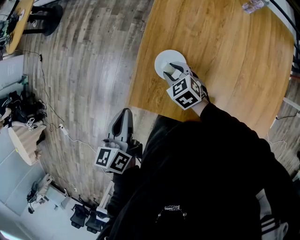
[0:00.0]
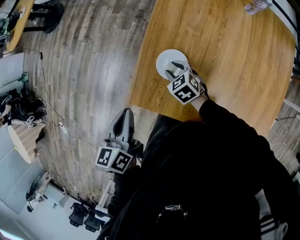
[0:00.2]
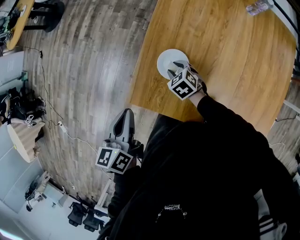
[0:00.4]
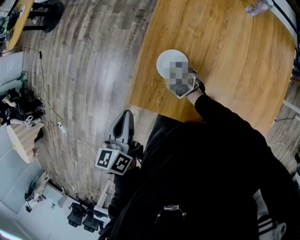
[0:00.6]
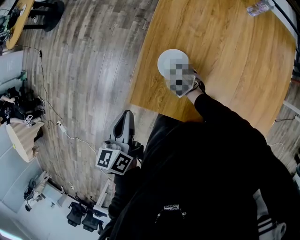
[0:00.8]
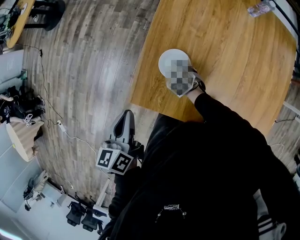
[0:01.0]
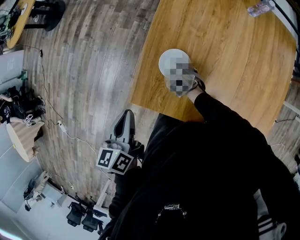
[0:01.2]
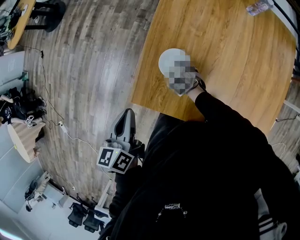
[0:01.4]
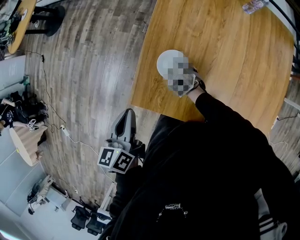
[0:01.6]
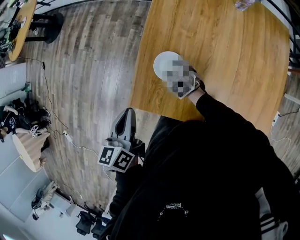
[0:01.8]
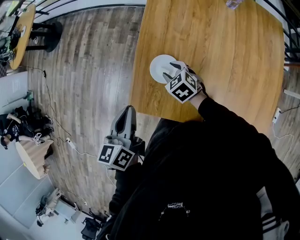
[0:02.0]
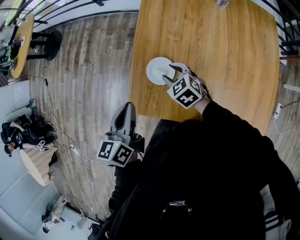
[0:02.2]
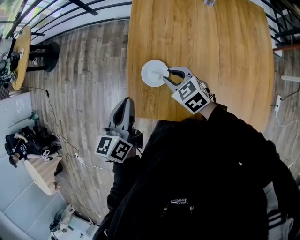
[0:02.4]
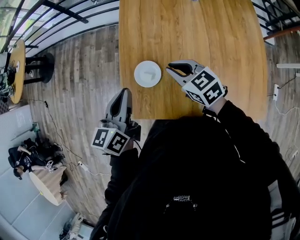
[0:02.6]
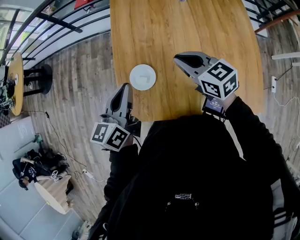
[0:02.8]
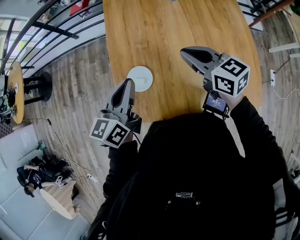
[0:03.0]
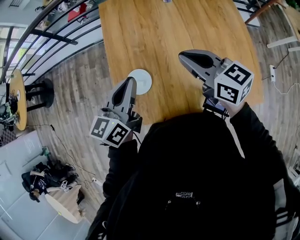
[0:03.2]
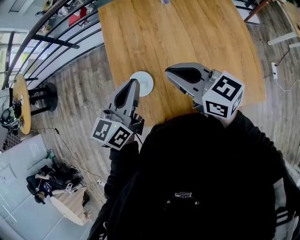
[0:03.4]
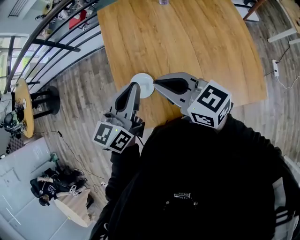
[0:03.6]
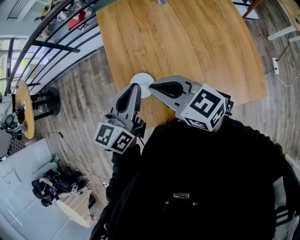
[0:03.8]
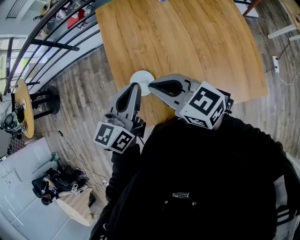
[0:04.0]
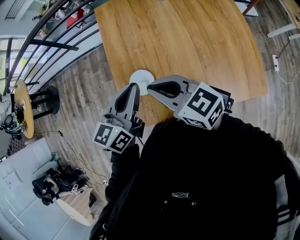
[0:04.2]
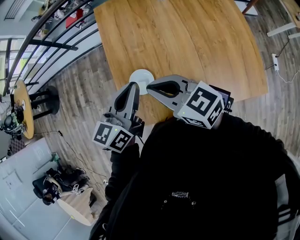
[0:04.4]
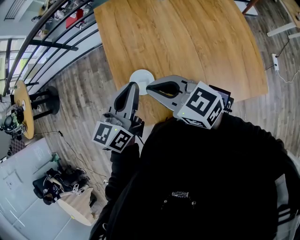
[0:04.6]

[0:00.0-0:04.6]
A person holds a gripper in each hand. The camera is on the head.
0:00.0 to 0:01.6: The right gripper travels downward by roughly 10 cm.
0:01.6 to 0:03.0: The left gripper shifts by about 20 cm, and turns by about 40 degrees, while the right gripper shifts about 35 cm upward, points its fingers some 40 degrees further upward, and closes its fingers.
0:03.0 to 0:04.6: The right gripper goes some 15 cm to the left and backward.

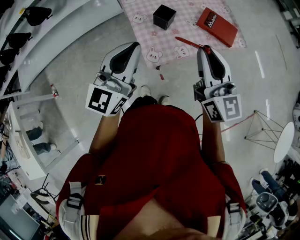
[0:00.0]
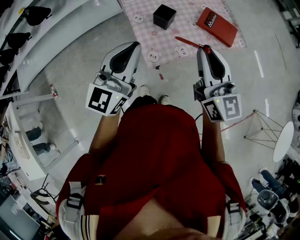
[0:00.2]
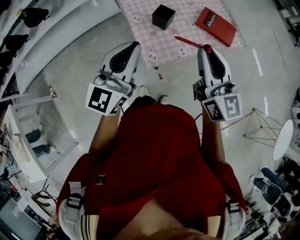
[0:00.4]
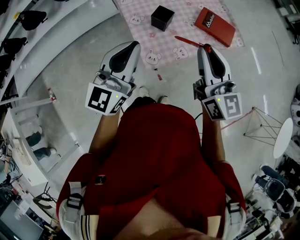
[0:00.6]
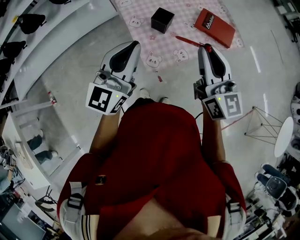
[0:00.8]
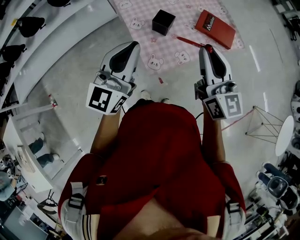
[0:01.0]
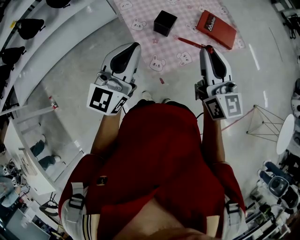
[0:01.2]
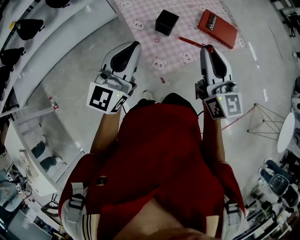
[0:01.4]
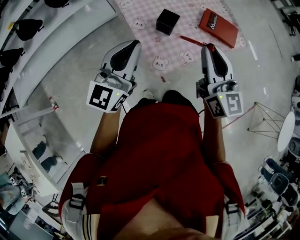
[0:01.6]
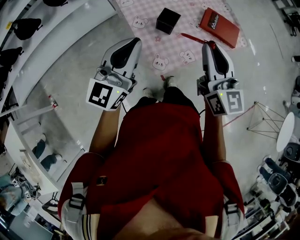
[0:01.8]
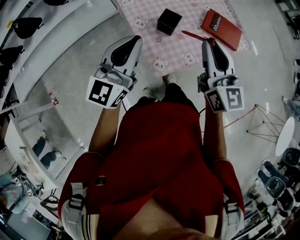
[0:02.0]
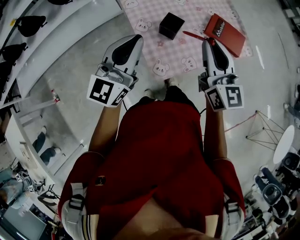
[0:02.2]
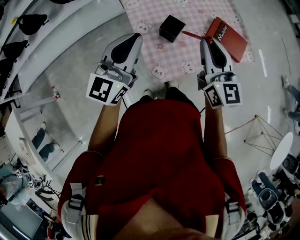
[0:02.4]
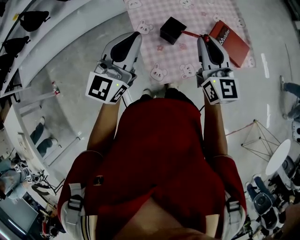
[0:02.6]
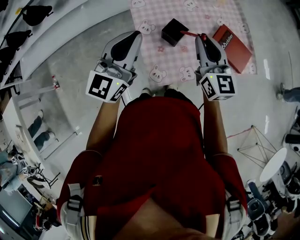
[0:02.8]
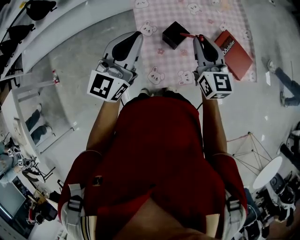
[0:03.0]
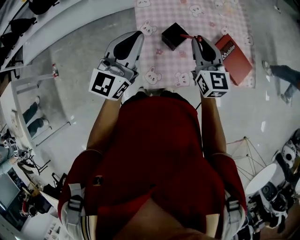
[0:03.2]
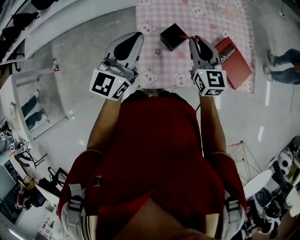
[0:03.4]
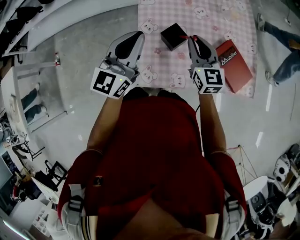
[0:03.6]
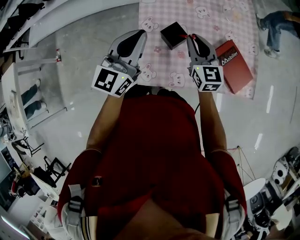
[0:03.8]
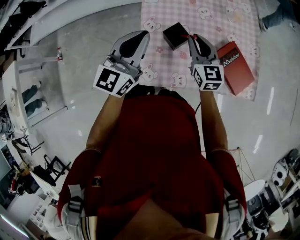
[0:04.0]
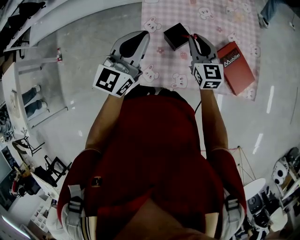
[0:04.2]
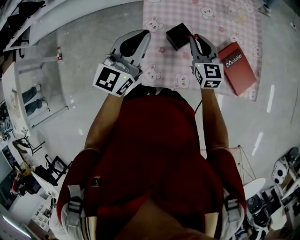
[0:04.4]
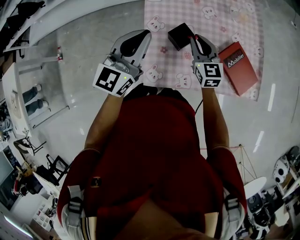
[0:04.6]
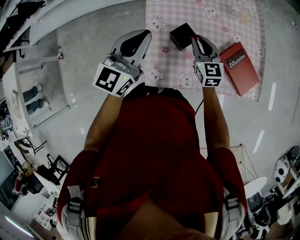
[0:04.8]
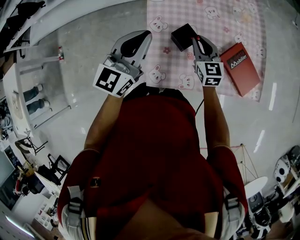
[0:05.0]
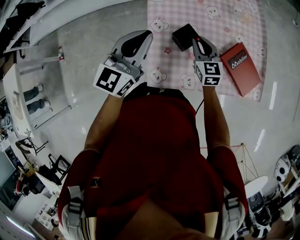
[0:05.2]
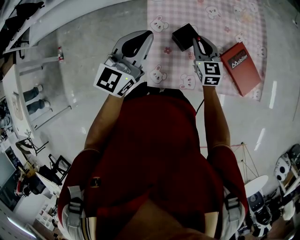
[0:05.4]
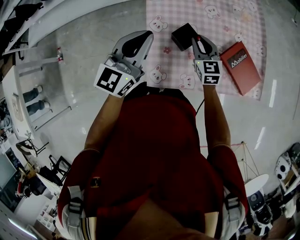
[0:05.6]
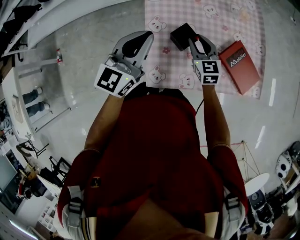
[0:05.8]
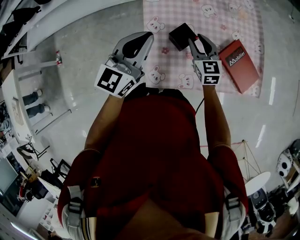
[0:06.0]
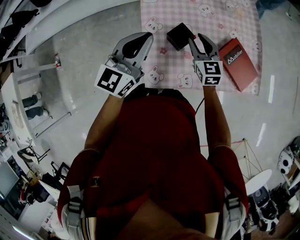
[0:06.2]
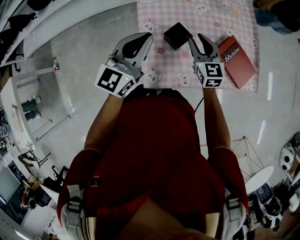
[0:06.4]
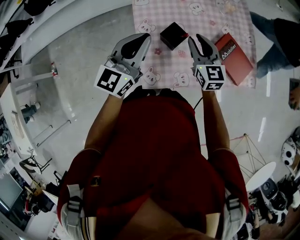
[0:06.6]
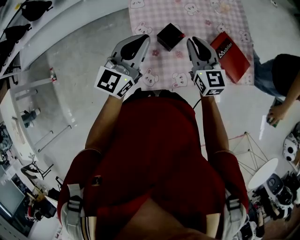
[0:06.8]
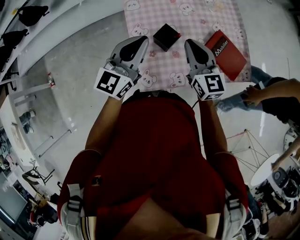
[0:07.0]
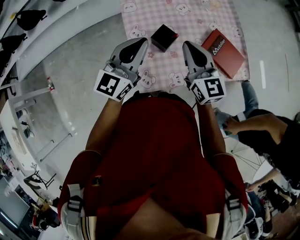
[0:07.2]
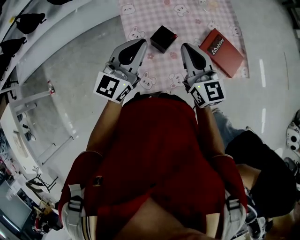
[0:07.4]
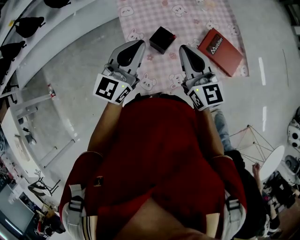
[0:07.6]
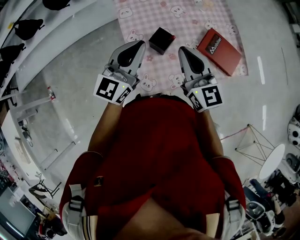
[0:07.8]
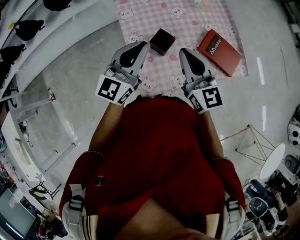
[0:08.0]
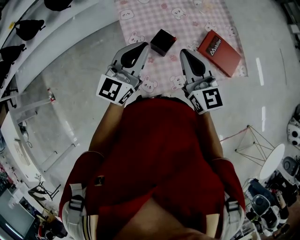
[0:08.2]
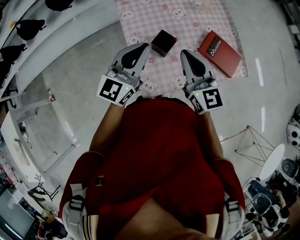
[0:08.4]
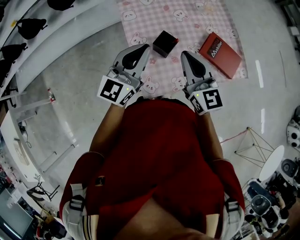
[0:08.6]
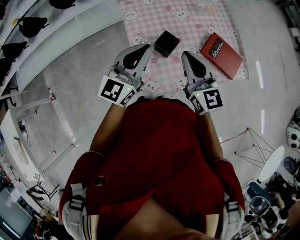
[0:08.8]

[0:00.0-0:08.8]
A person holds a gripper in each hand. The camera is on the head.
0:00.0 to 0:01.4: The right gripper moves some 5 cm; the left gripper is displaced forward and to the left by roughly 10 cm.
0:01.4 to 0:03.0: The left gripper heads forward, covering roughly 15 cm; the right gripper travels forward and downward by roughly 20 cm.
0:03.0 to 0:04.4: The left gripper changes place by about 5 cm. The right gripper travels downward and forward by about 10 cm.
0:04.4 to 0:05.8: The right gripper is displaced downward by about 5 cm.
0:05.8 to 0:07.4: The right gripper heads upward and backward, covering approximately 20 cm, turns by approximately 20 degrees, and closes its fingers.
0:07.4 to 0:08.8: The grippers move only a little.

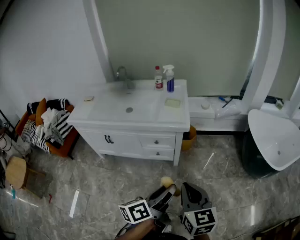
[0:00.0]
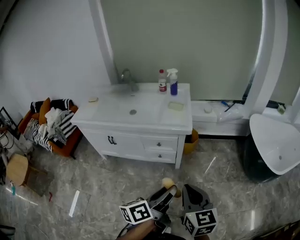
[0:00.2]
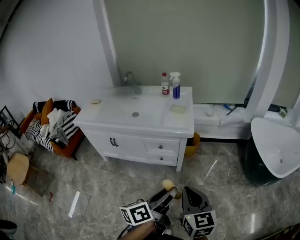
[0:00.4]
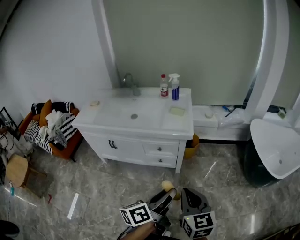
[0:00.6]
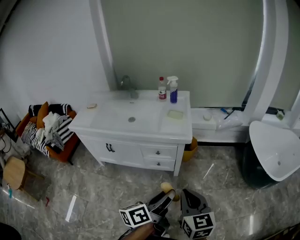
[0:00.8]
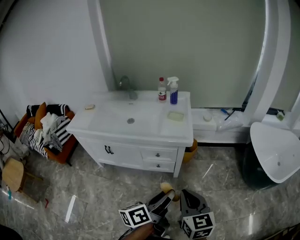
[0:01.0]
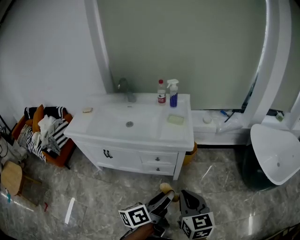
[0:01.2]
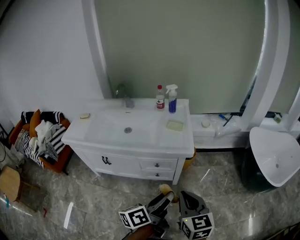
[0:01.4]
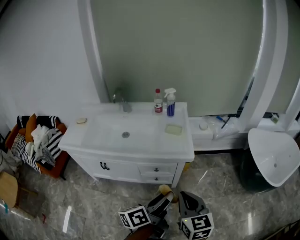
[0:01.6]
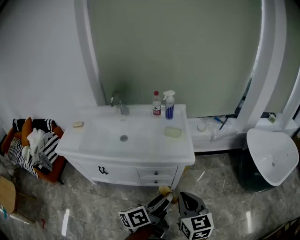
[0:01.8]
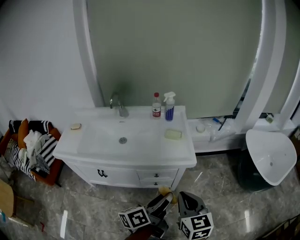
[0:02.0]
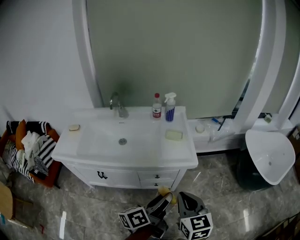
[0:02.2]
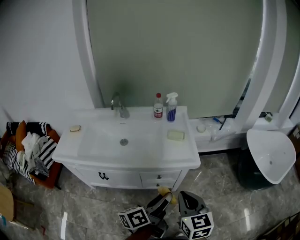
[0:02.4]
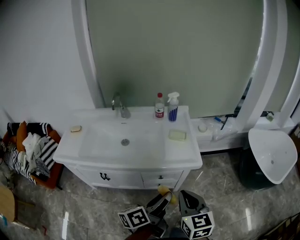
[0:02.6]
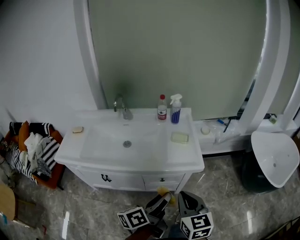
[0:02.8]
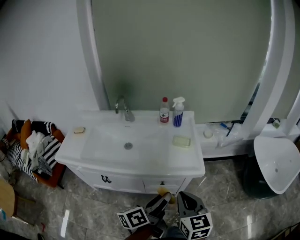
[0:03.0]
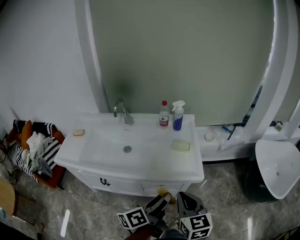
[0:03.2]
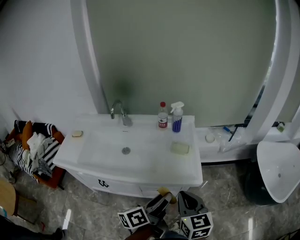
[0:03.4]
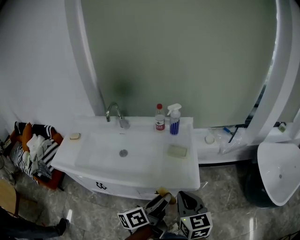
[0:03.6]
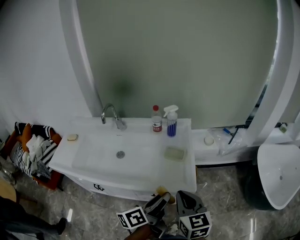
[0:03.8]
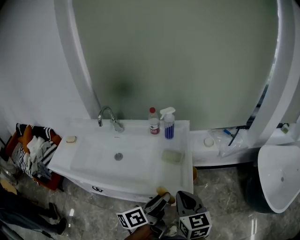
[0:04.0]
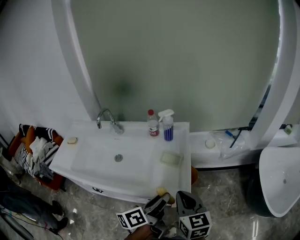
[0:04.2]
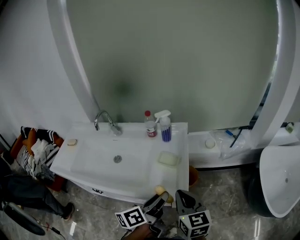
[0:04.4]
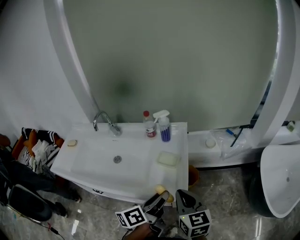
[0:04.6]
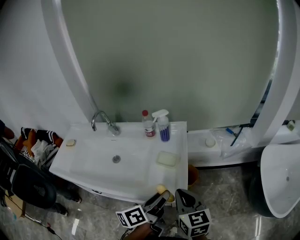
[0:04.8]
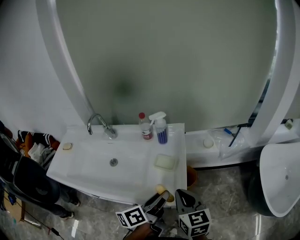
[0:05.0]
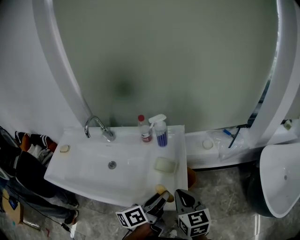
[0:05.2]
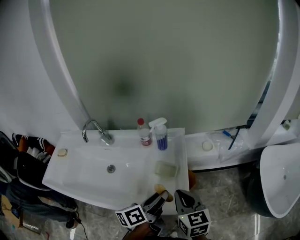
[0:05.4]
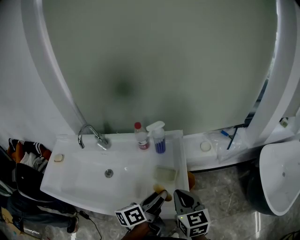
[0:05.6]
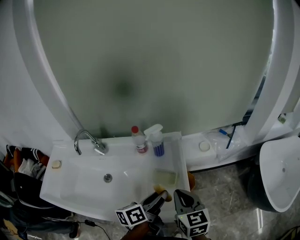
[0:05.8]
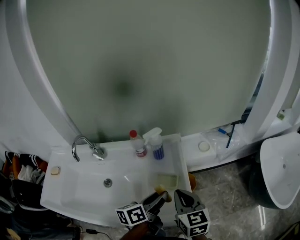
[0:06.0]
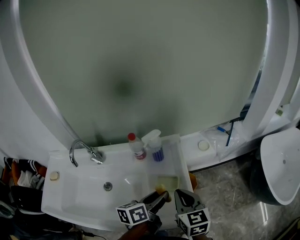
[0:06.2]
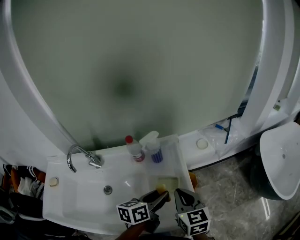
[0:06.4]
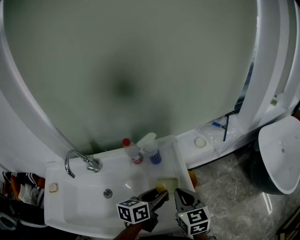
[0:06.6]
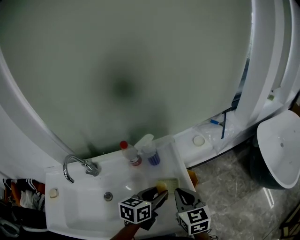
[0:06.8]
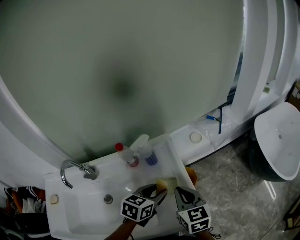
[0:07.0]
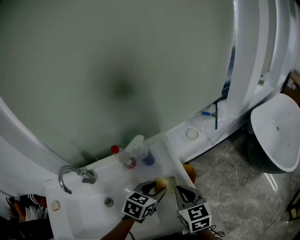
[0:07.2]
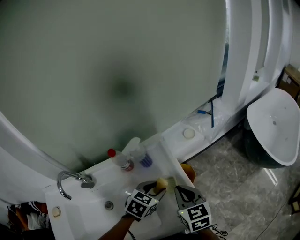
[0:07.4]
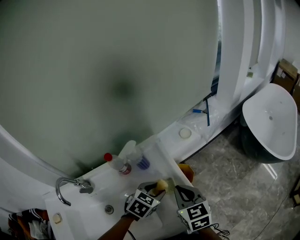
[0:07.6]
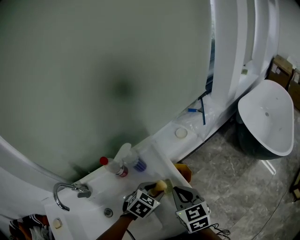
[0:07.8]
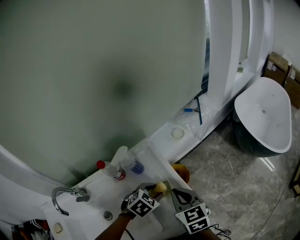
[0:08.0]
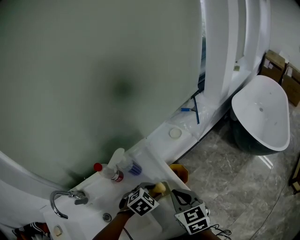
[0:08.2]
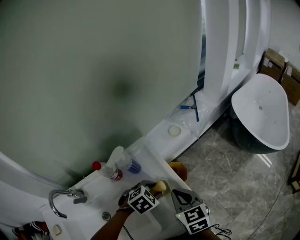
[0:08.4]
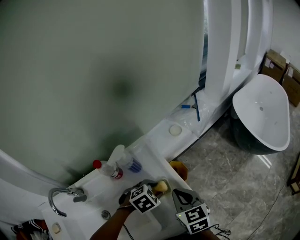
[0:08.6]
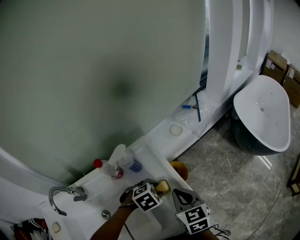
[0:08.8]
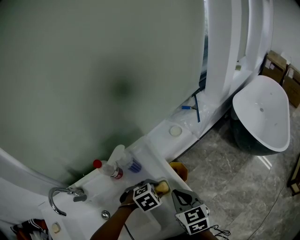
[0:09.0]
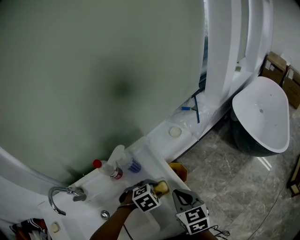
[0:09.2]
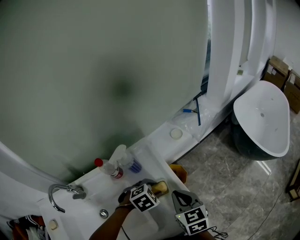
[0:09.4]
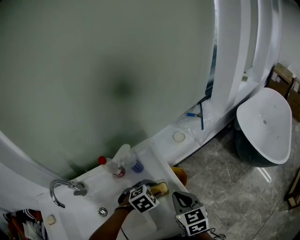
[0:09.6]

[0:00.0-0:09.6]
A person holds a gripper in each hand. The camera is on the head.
0:00.0 to 0:01.6: The two grippers go roughly 15 cm forward and to the left.
0:01.6 to 0:03.2: Both grippers move forward and to the left, roughly 15 cm.
0:03.2 to 0:04.8: The two grippers go approximately 20 cm forward and to the right.
0:04.8 to 0:06.4: The grippers both shift forward by roughly 15 cm. The left gripper turns by some 30 degrees.
0:06.4 to 0:08.0: The left gripper shifts about 10 cm downward and forward, and rotates around the line of its fingers by roughly 70 degrees, clockwise from behind.
0:08.0 to 0:09.6: The grippers stay close to where they were, moving slightly.

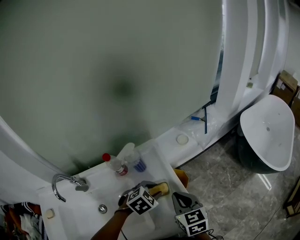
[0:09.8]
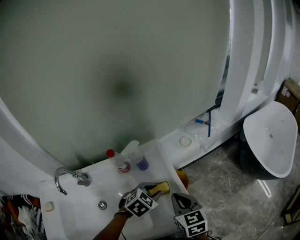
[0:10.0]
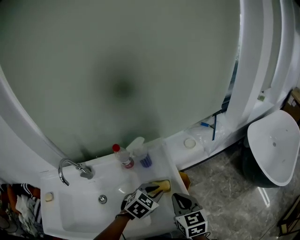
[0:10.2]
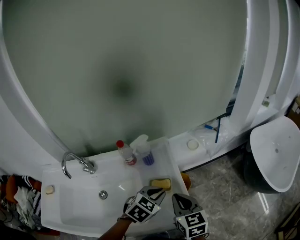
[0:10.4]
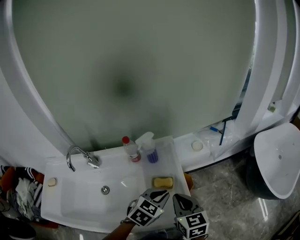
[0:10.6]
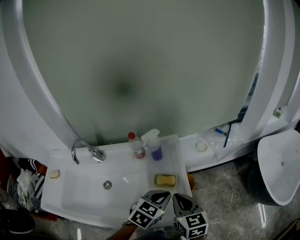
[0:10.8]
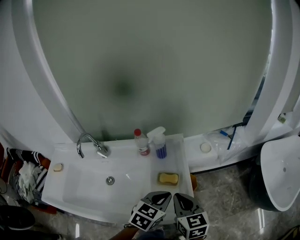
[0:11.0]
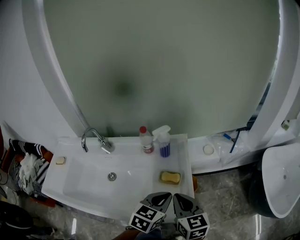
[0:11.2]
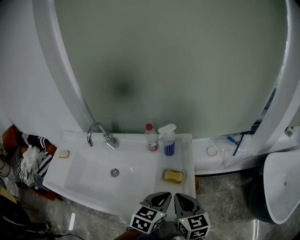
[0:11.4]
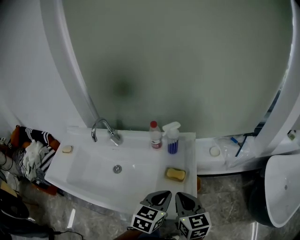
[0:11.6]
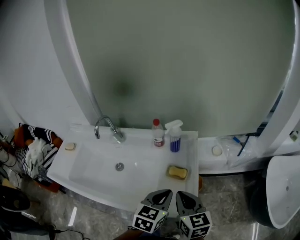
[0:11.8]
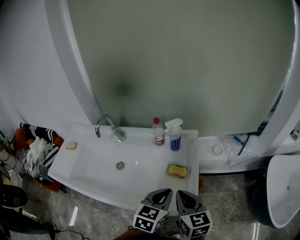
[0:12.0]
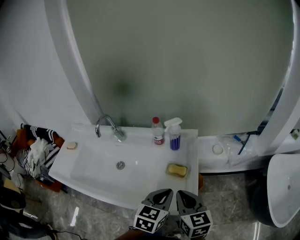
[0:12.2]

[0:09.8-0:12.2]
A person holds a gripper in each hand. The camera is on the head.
0:09.8 to 0:11.0: The left gripper goes roughly 10 cm backward and upward, changes its angle by roughly 50 degrees, and closes; the right gripper goes some 5 cm backward.
0:11.0 to 0:12.2: The left gripper swivels approximately 20 degrees.
